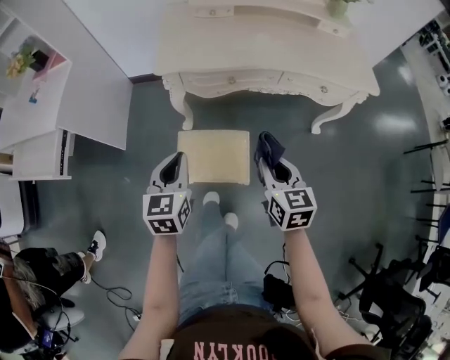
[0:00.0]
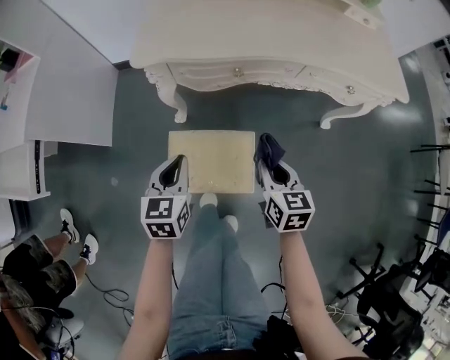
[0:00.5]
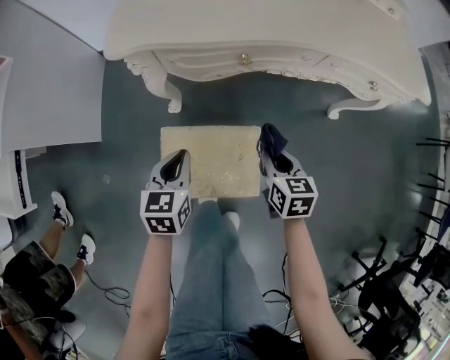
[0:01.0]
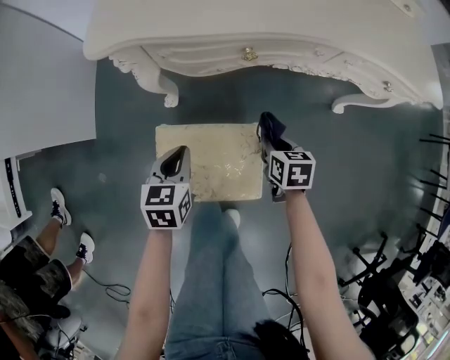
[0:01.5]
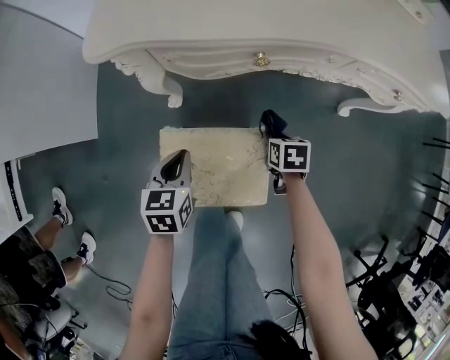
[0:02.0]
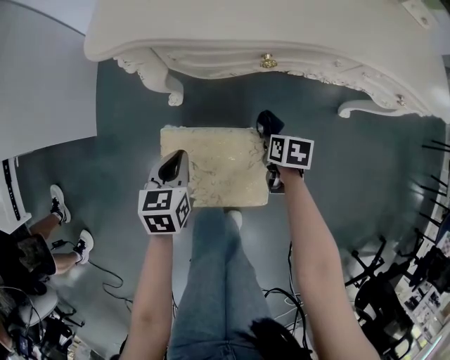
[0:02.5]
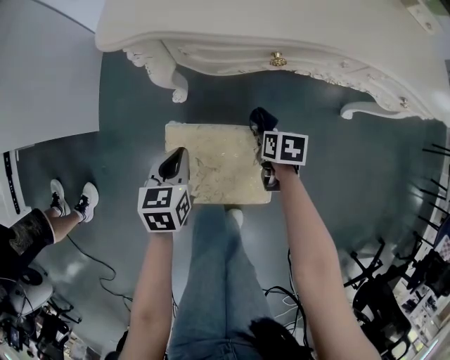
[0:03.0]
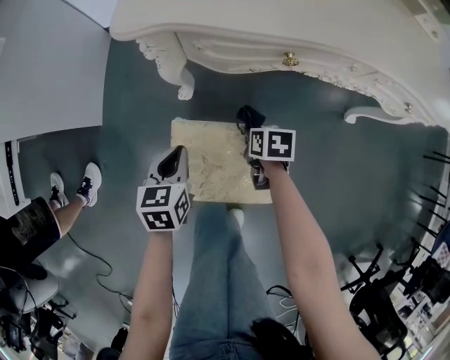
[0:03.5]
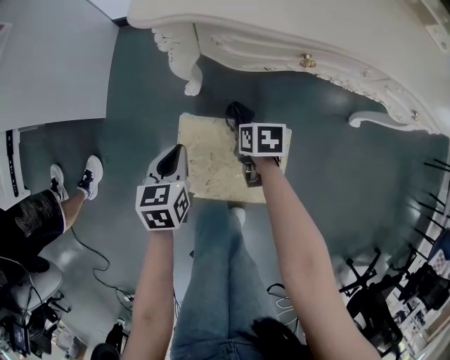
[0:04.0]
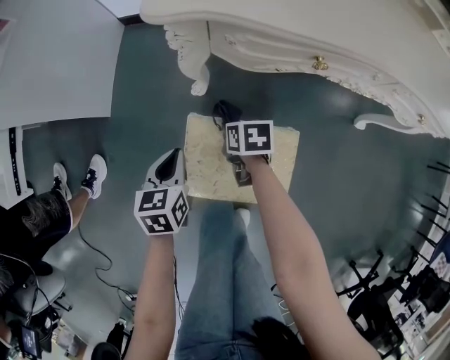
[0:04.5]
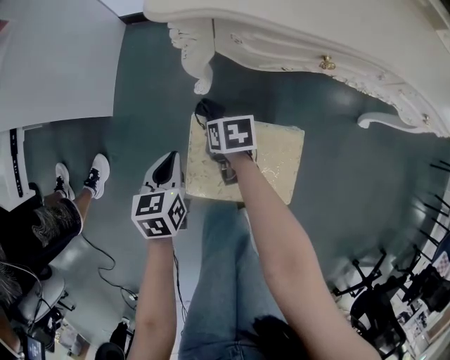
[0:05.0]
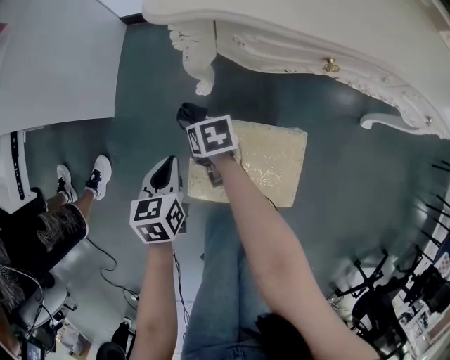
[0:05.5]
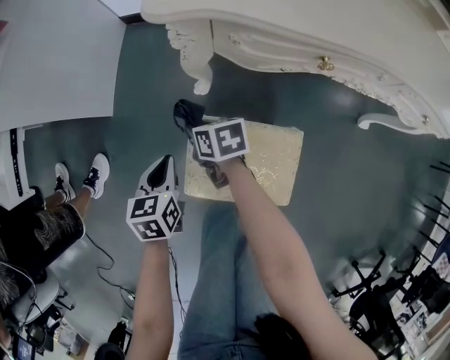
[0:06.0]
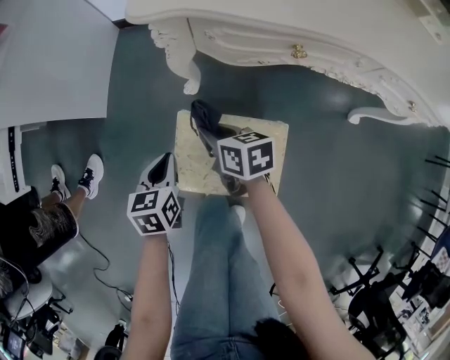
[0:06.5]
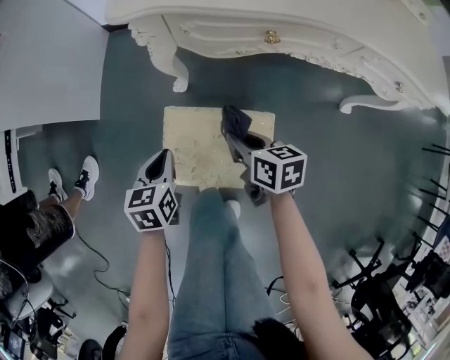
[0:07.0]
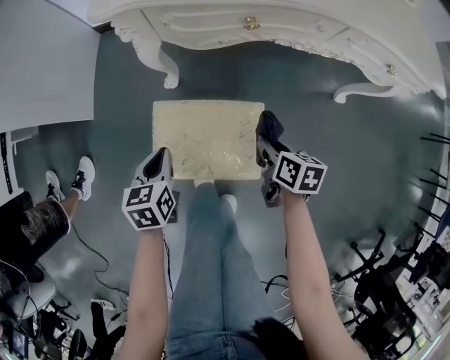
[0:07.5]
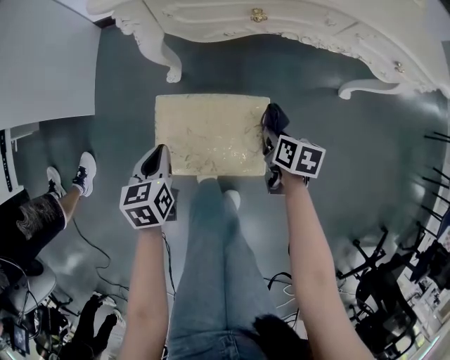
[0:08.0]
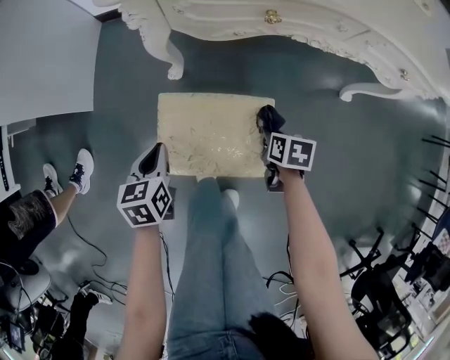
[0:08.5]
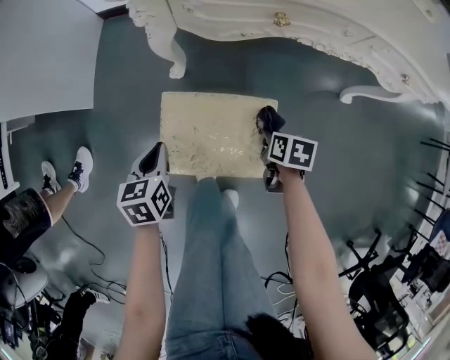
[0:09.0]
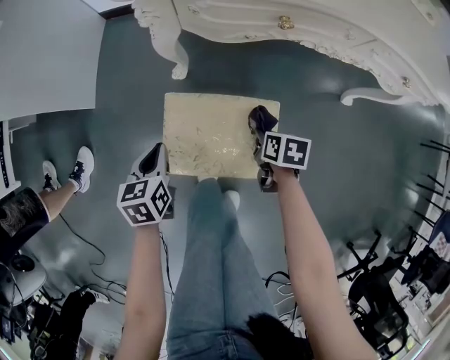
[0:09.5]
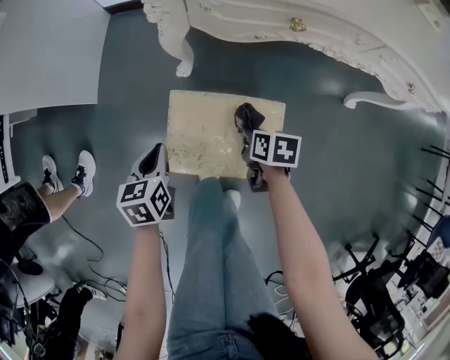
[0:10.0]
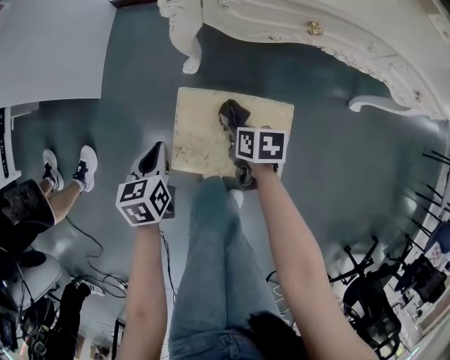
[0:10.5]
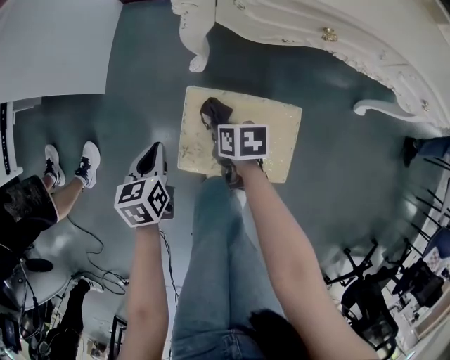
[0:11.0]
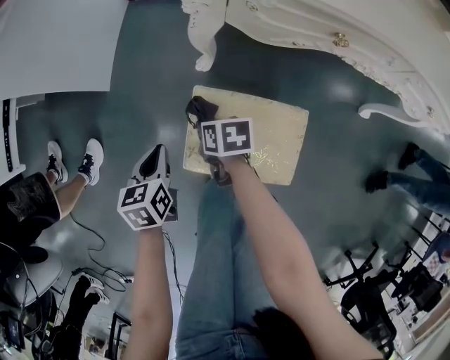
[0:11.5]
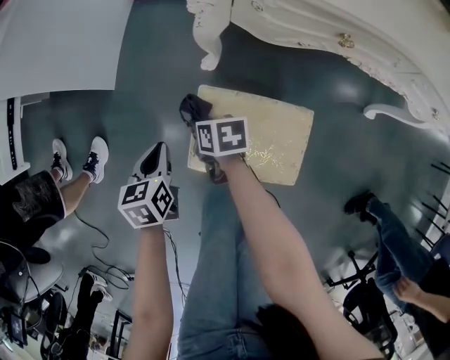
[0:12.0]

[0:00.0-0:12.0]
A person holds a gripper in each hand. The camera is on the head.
0:00.0 to 0:02.0: Both grippers travel together downward and forward, about 40 cm. The right gripper tips its fingers downward by approximately 40 degrees, while the left gripper swivels about 20 degrees.
0:02.0 to 0:04.0: The left gripper heads to the left, covering about 10 cm; the right gripper shifts some 15 cm to the left.
0:04.0 to 0:06.0: The left gripper travels to the left by some 5 cm. The right gripper travels to the left and forward by about 15 cm, and rotates approximately 20 degrees.
0:06.0 to 0:08.0: The left gripper moves backward and to the right, roughly 10 cm, while the right gripper heads to the right and backward, covering roughly 35 cm, and changes its angle by some 30 degrees.
0:08.0 to 0:10.0: The left gripper moves to the left, approximately 5 cm. The right gripper heads to the left, covering some 10 cm.
0:10.0 to 0:12.0: The right gripper moves to the left and forward, roughly 25 cm. Meanwhile the left gripper moves to the left, approximately 5 cm.

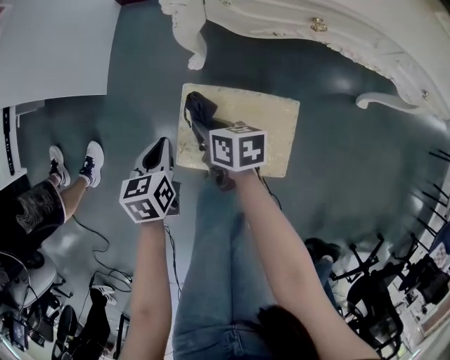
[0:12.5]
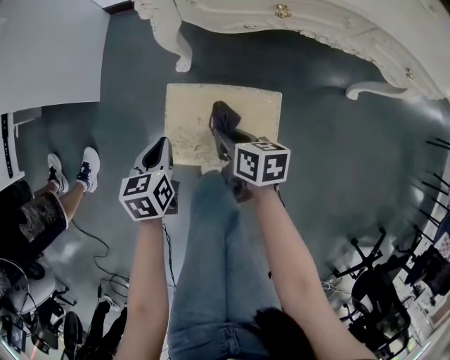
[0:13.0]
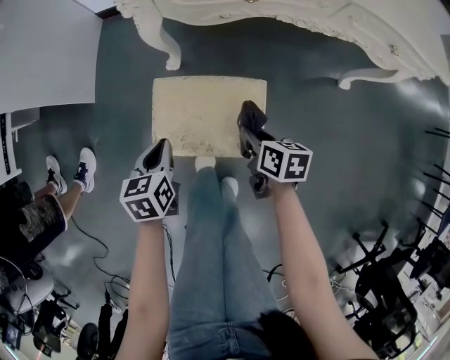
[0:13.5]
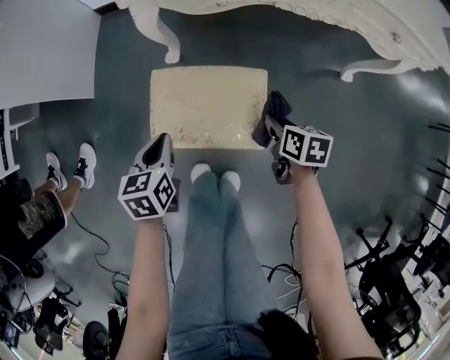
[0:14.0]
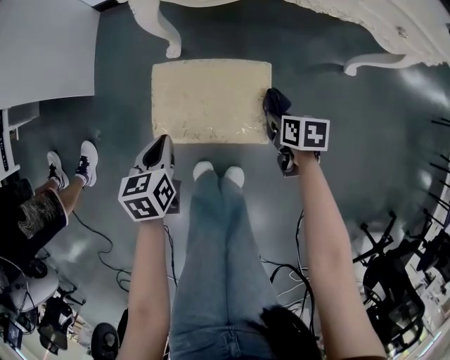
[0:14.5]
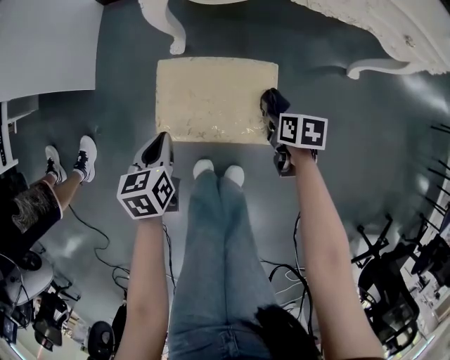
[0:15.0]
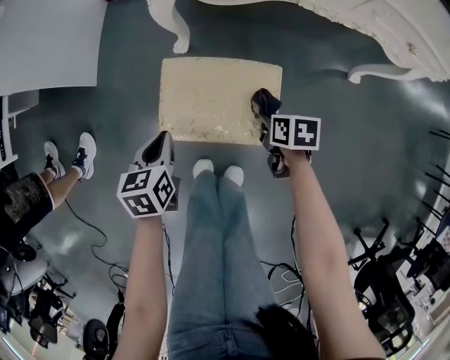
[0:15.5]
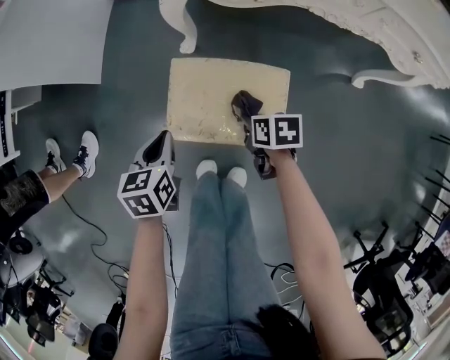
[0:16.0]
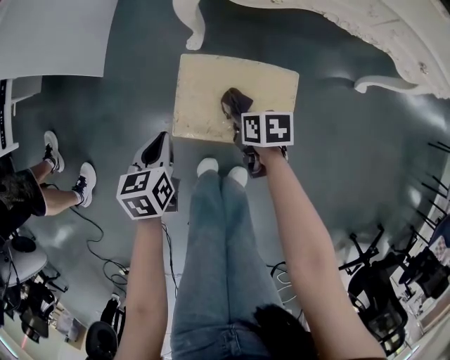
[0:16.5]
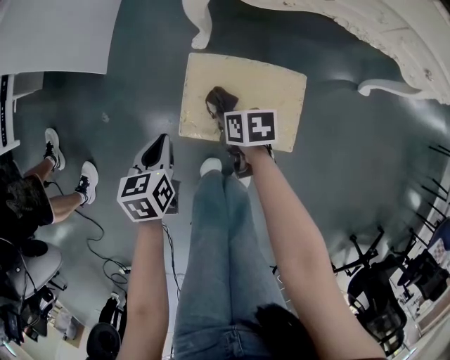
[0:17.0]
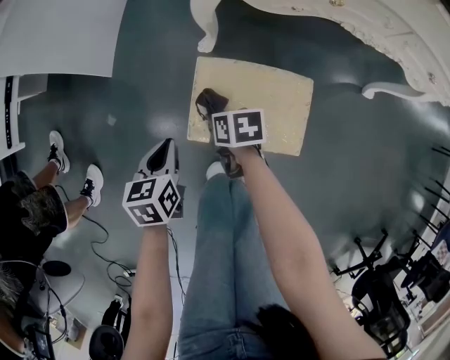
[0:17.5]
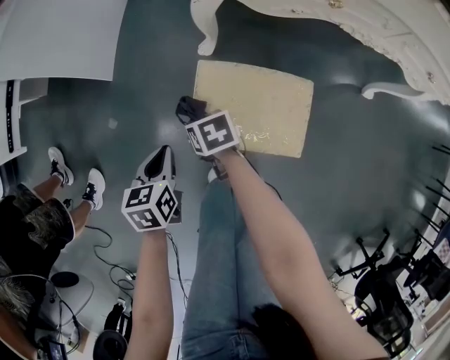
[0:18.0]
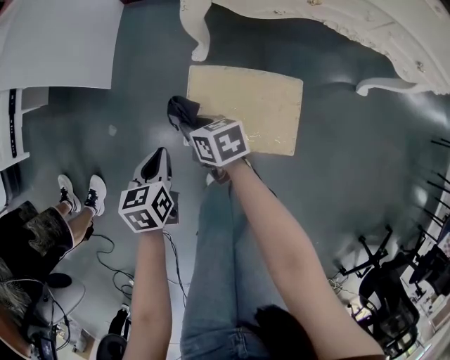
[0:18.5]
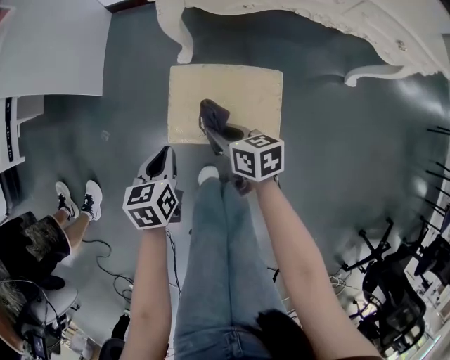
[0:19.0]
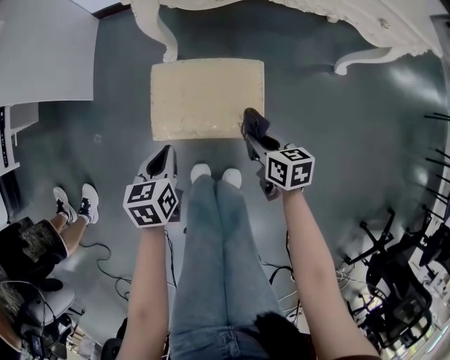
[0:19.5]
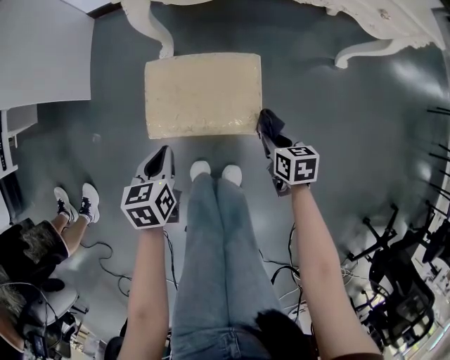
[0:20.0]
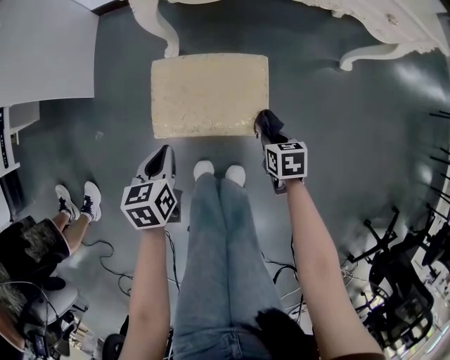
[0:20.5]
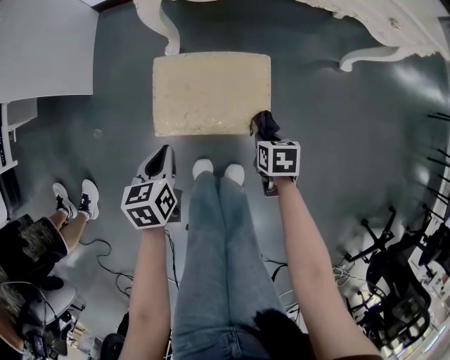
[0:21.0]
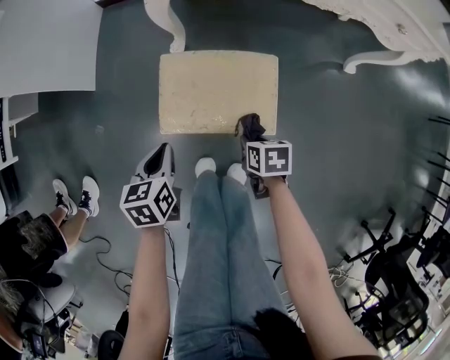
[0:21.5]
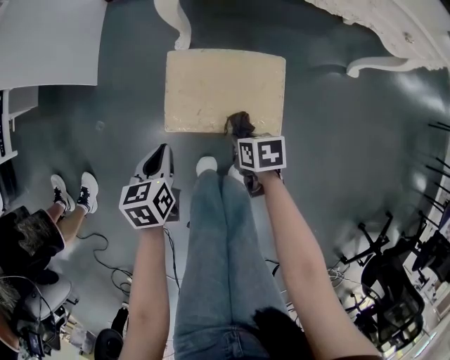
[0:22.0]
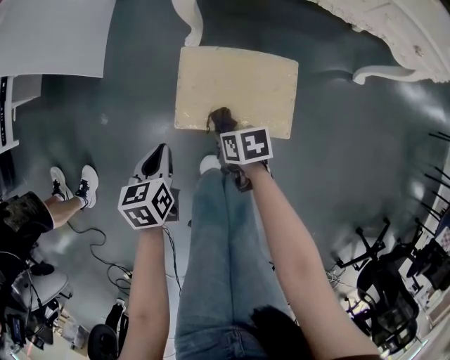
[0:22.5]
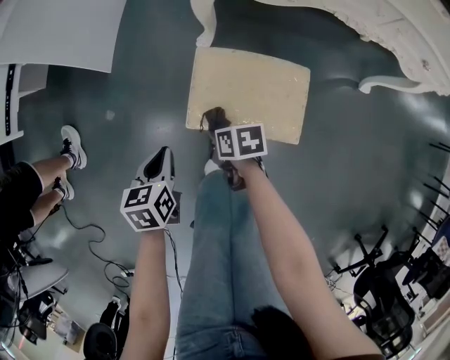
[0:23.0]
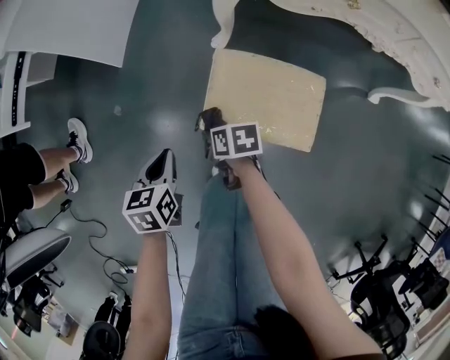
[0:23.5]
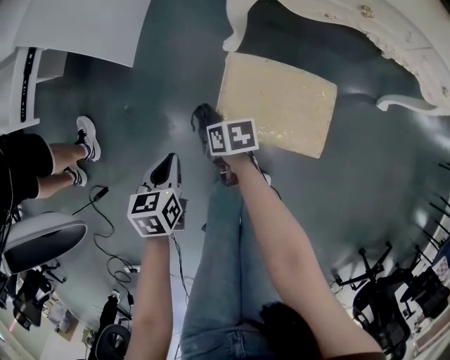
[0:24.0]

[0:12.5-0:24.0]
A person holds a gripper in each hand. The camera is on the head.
0:12.5 to 0:14.5: The right gripper heads to the right and backward, covering about 30 cm, and rotates about 20 degrees; the left gripper heads backward and to the right, covering roughly 10 cm.
0:14.5 to 0:16.5: The left gripper travels to the left by roughly 5 cm; the right gripper heads to the left, covering roughly 15 cm.
0:16.5 to 0:18.5: The right gripper heads to the left and forward, covering approximately 15 cm, and swivels some 20 degrees.
0:18.5 to 0:20.0: The left gripper is displaced to the right and backward by about 15 cm; the right gripper travels to the right and backward by approximately 35 cm, and changes its angle by about 30 degrees.
0:20.0 to 0:22.0: The right gripper shifts approximately 15 cm to the left; the left gripper shifts some 5 cm to the left.
0:22.0 to 0:24.0: The left gripper goes approximately 10 cm to the left. The right gripper goes approximately 25 cm to the left and forward.

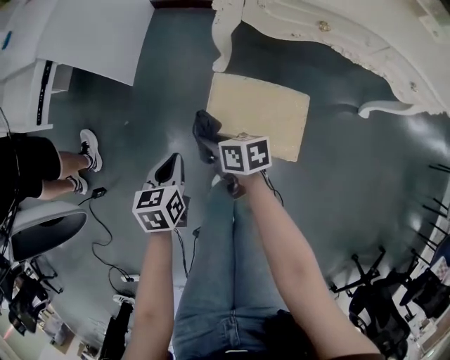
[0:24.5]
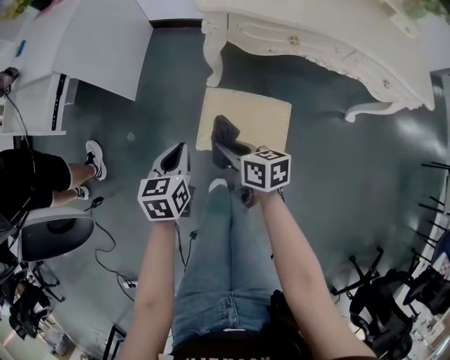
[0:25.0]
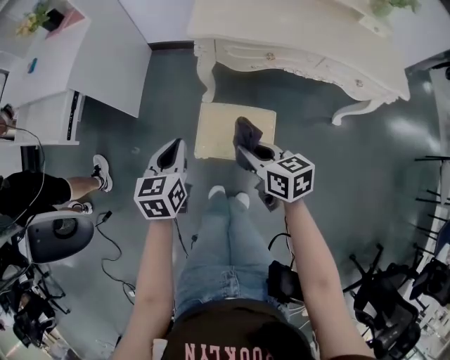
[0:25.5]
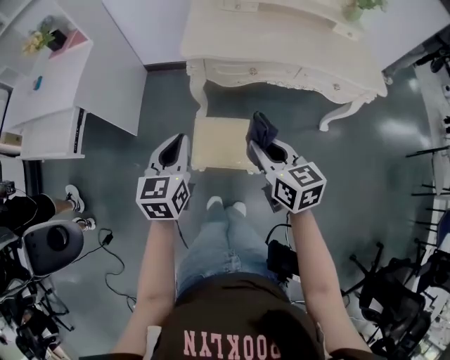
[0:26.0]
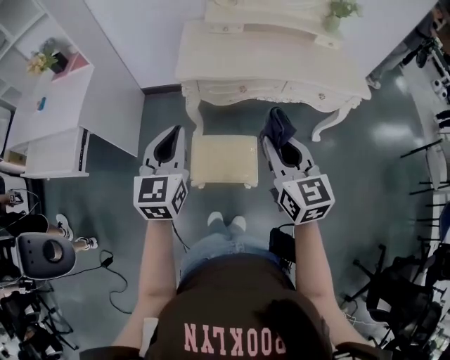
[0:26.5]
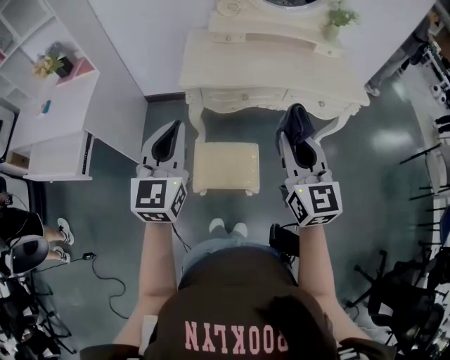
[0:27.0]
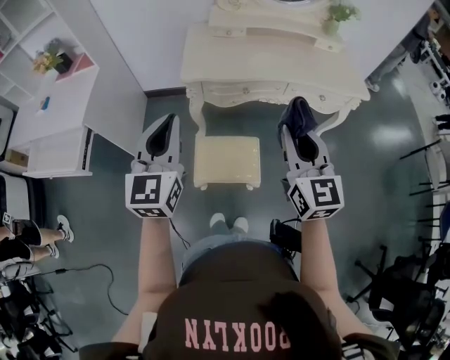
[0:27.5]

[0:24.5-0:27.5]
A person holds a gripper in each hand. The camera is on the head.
0:24.5 to 0:26.0: The right gripper shifts approximately 40 cm upward and to the right, and swivels roughly 40 degrees. The left gripper goes roughly 35 cm upward, and turns by roughly 30 degrees.
0:26.0 to 0:27.5: The left gripper travels upward by about 15 cm, and rotates roughly 30 degrees. Meanwhile the right gripper is displaced upward and to the right by roughly 15 cm, and turns by approximately 40 degrees.
